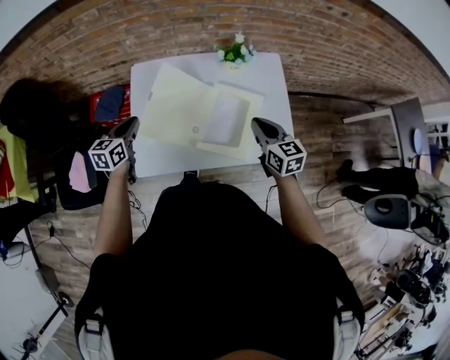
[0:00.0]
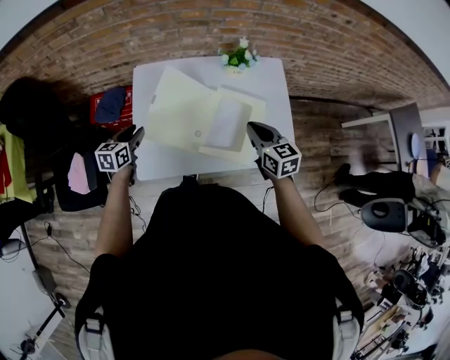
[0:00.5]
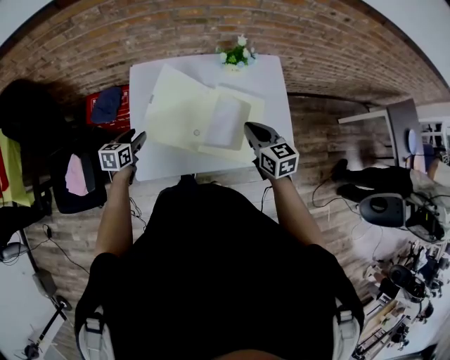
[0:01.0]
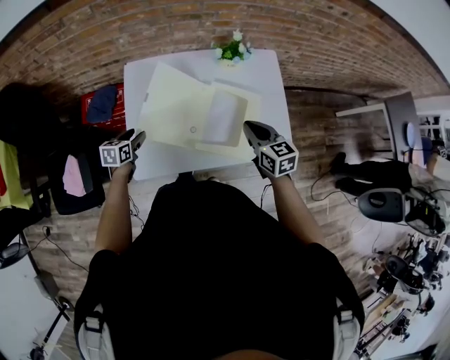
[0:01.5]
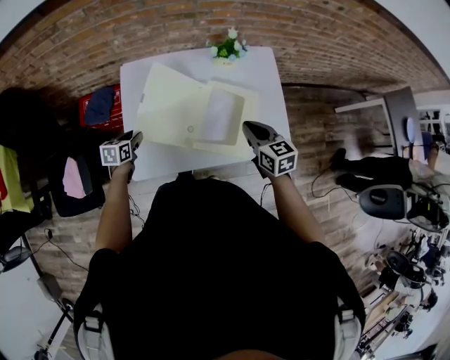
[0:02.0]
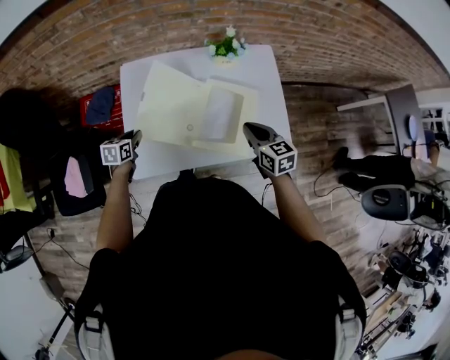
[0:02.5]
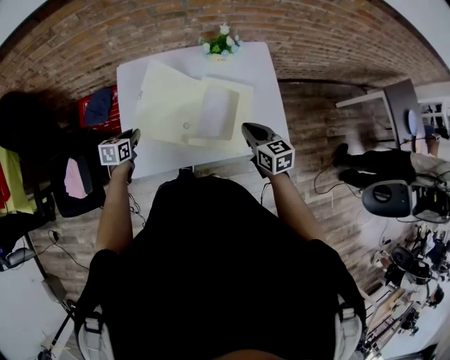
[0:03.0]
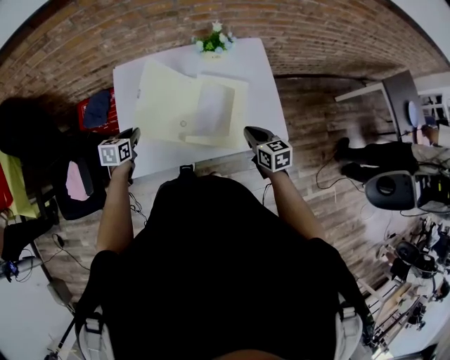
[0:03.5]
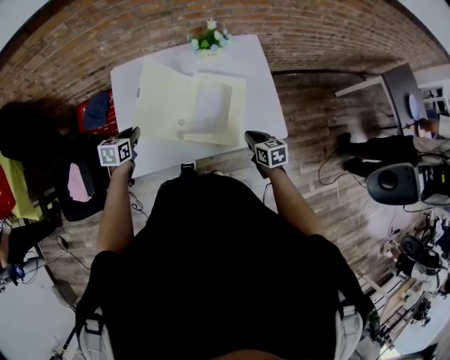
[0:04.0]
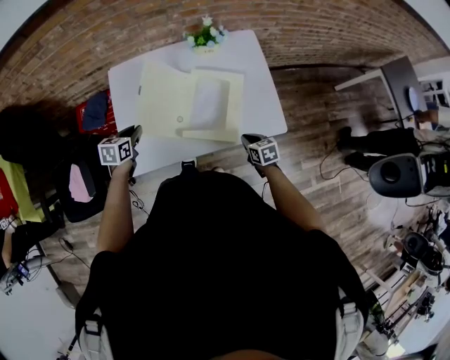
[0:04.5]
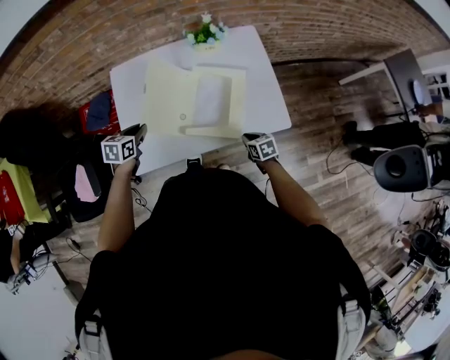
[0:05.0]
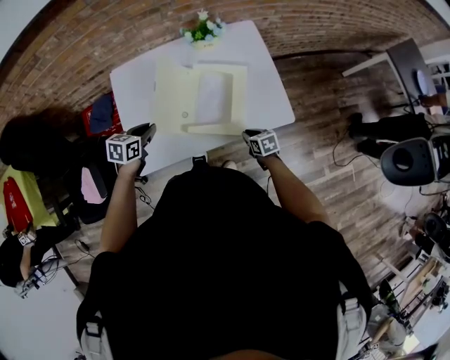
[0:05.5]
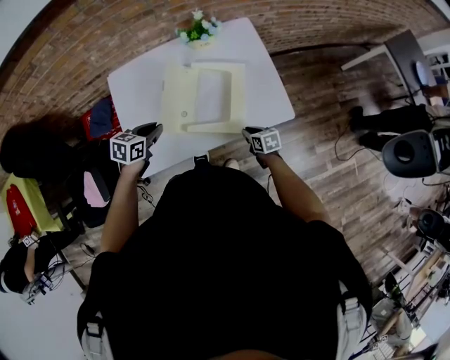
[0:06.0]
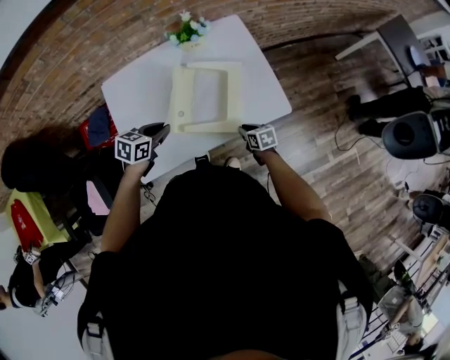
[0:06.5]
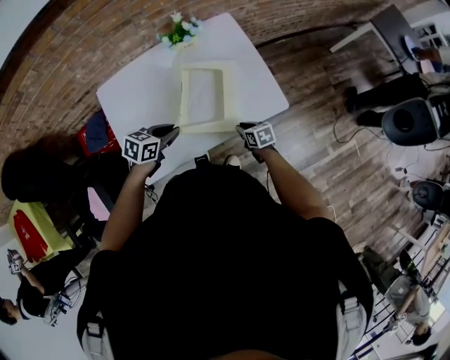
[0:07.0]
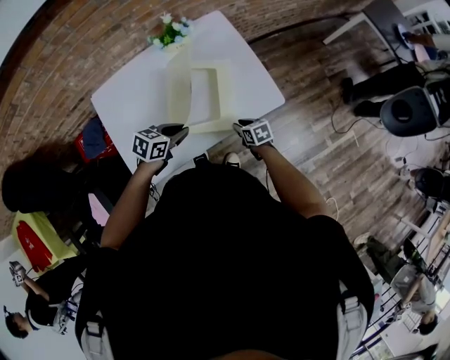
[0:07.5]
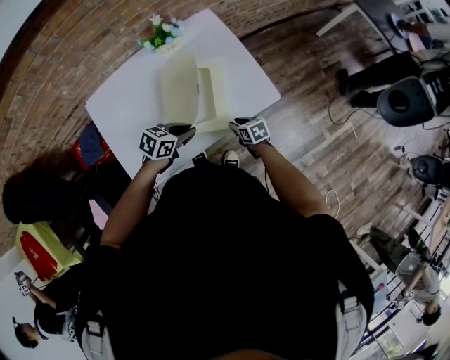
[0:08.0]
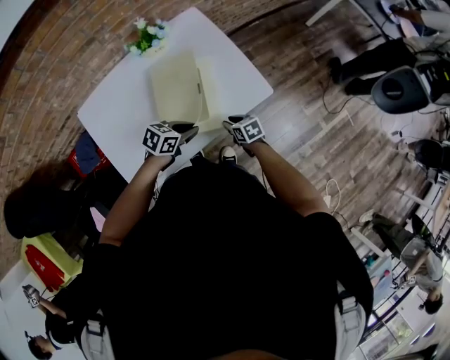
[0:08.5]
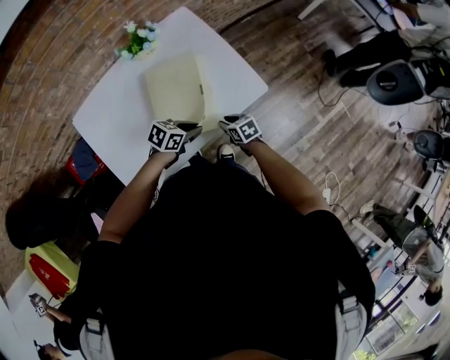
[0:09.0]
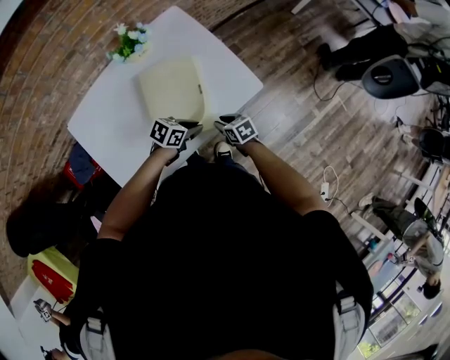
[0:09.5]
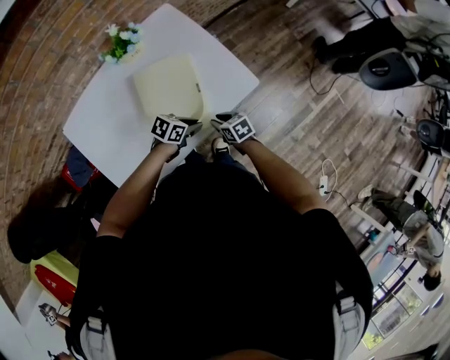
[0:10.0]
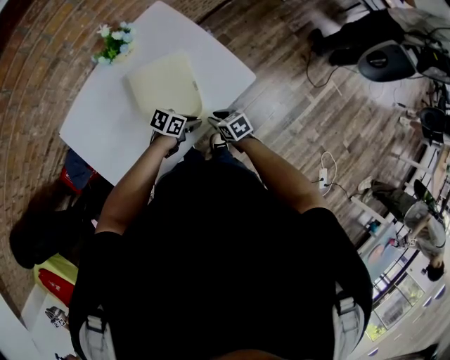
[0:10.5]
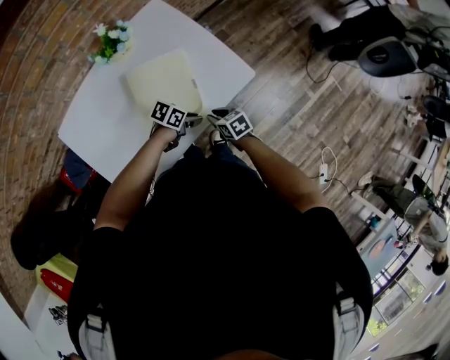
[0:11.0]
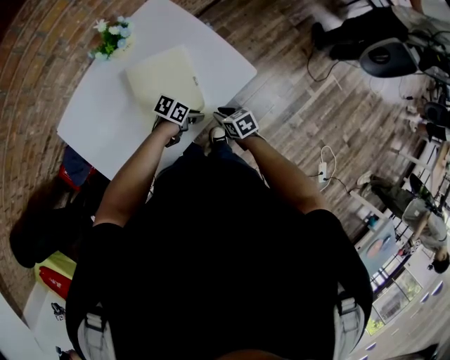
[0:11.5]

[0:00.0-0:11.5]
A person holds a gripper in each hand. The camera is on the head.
0:00.0 to 0:02.0: The left gripper heads downward, covering roughly 15 cm, turns by some 20 degrees, and opens up.
0:02.0 to 0:04.0: The left gripper is displaced to the right by approximately 5 cm, and closes up. Meanwhile the right gripper is displaced downward, to the right and backward by some 20 cm.
0:04.0 to 0:06.0: The right gripper moves downward, approximately 10 cm; the left gripper goes some 10 cm to the right, and turns by roughly 20 degrees.
0:06.0 to 0:07.5: The left gripper is displaced to the right by about 15 cm, and changes its angle by roughly 20 degrees.
0:07.5 to 0:09.5: The left gripper moves about 15 cm, and changes its angle by some 20 degrees.
0:09.5 to 0:11.5: The left gripper travels downward by approximately 5 cm.

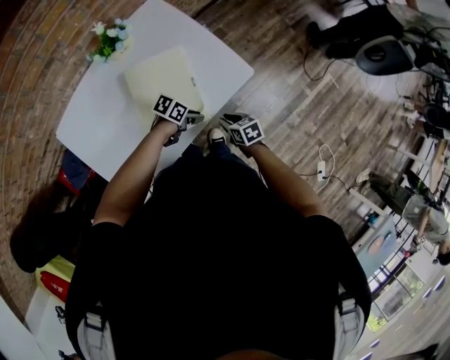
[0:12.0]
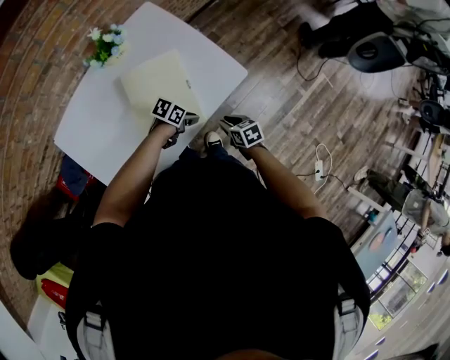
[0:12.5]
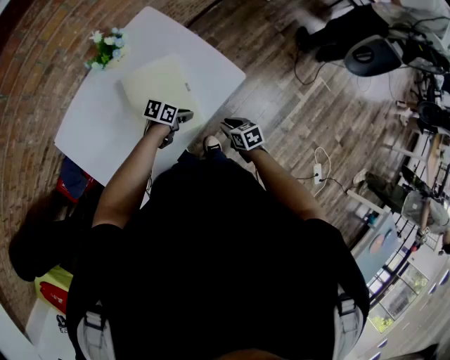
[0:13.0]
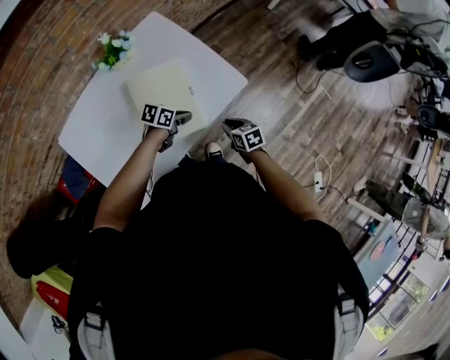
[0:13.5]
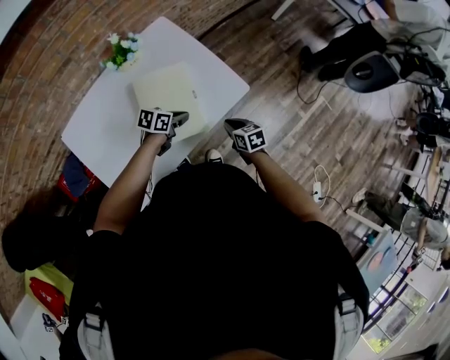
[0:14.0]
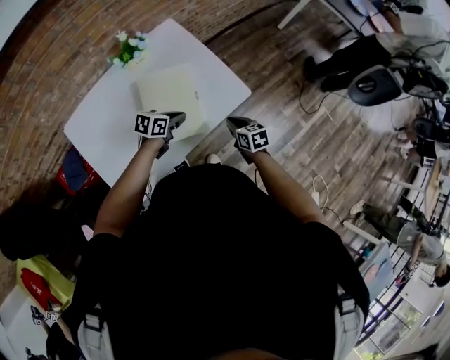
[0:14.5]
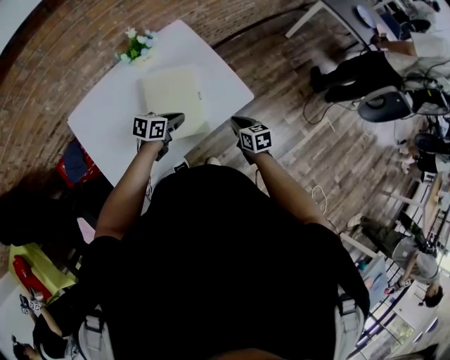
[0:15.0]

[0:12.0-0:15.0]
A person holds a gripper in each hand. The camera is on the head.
0:12.0 to 0:13.5: The left gripper moves about 5 cm.
0:13.5 to 0:15.0: Both grippers move upward, roughly 5 cm. The left gripper turns by some 20 degrees.

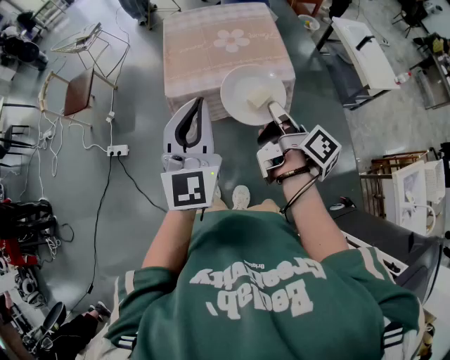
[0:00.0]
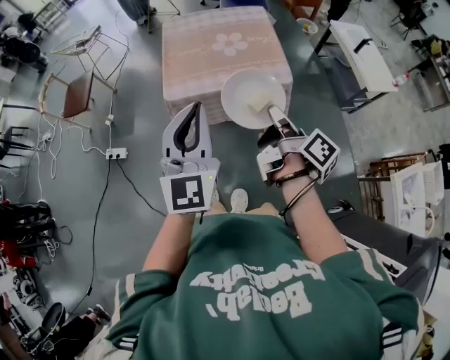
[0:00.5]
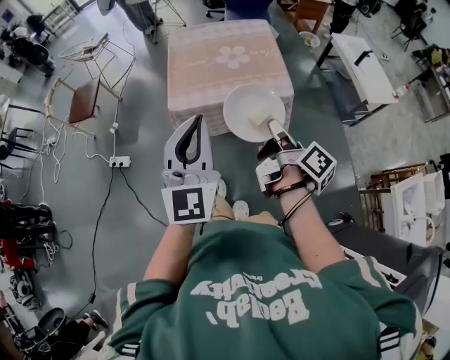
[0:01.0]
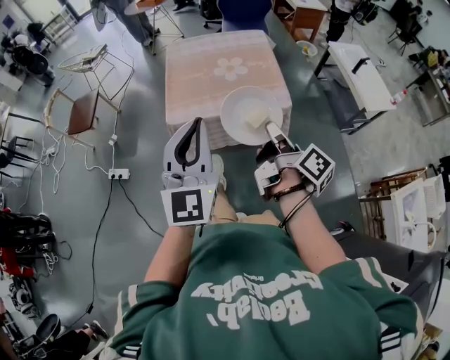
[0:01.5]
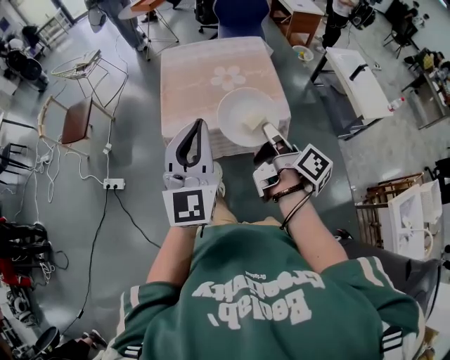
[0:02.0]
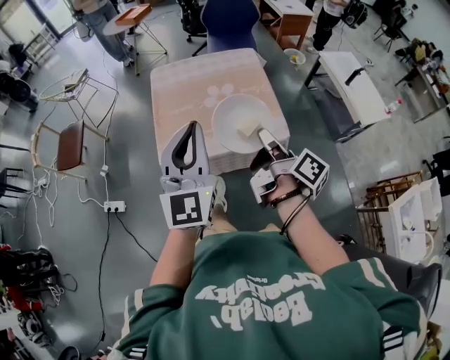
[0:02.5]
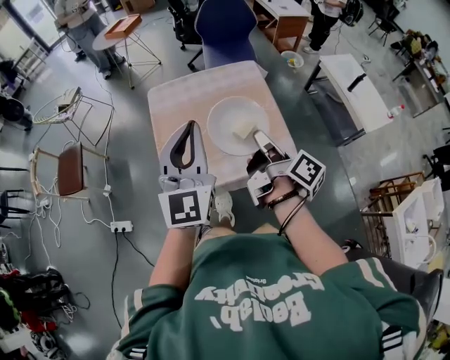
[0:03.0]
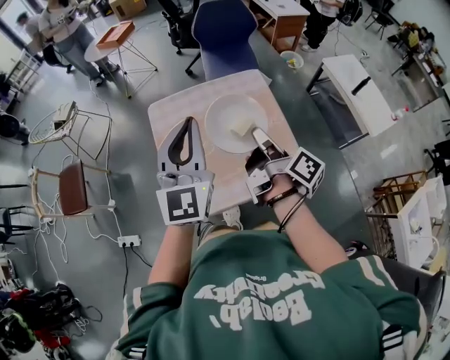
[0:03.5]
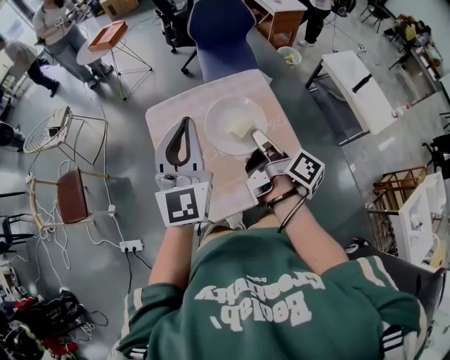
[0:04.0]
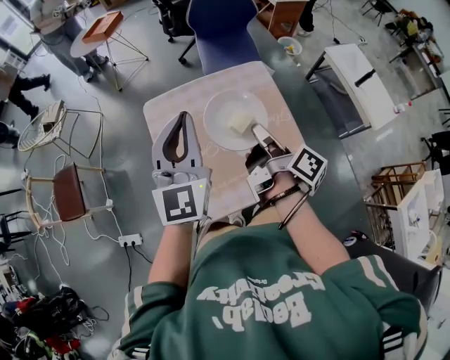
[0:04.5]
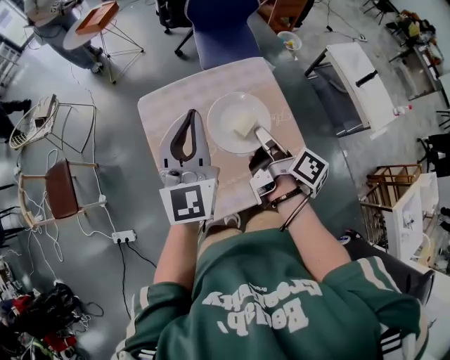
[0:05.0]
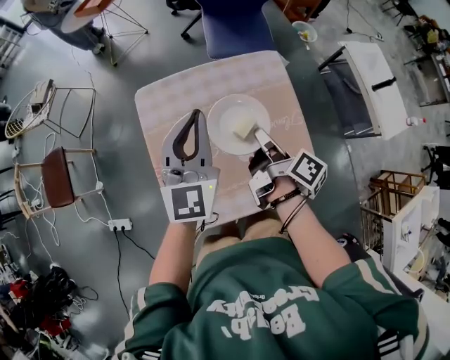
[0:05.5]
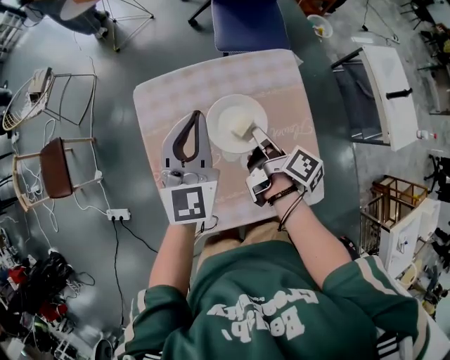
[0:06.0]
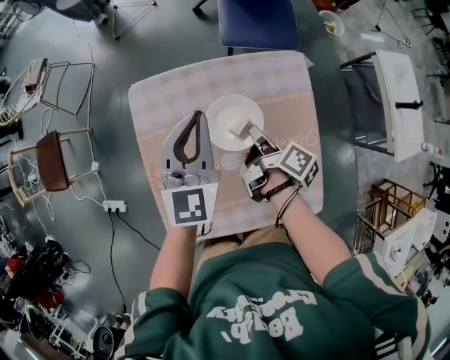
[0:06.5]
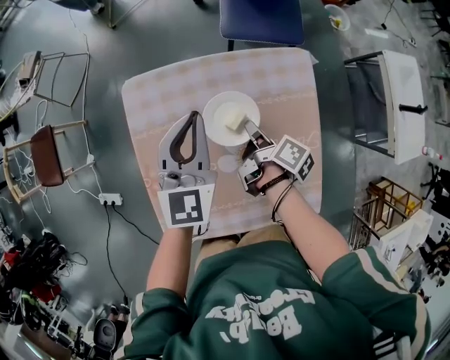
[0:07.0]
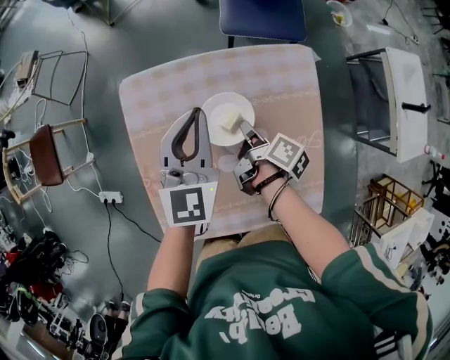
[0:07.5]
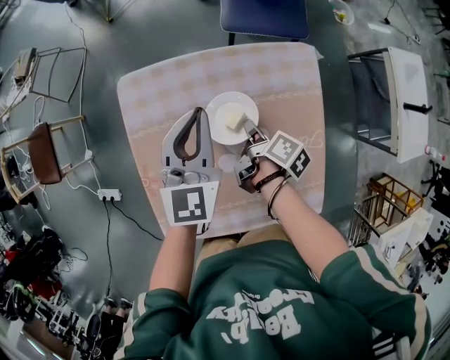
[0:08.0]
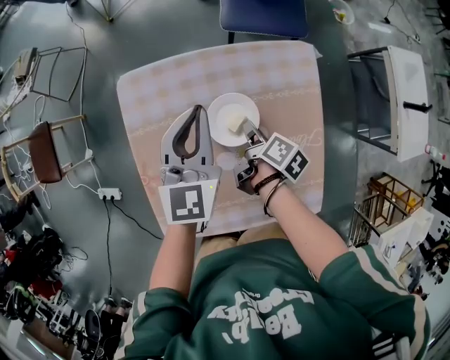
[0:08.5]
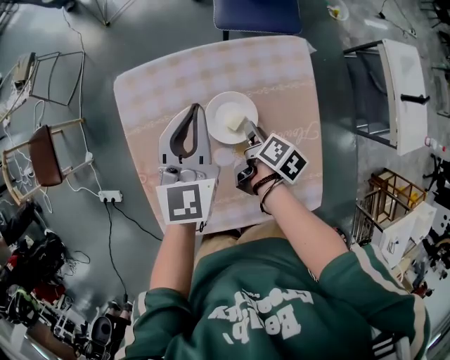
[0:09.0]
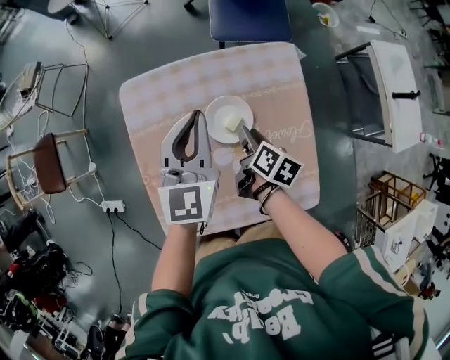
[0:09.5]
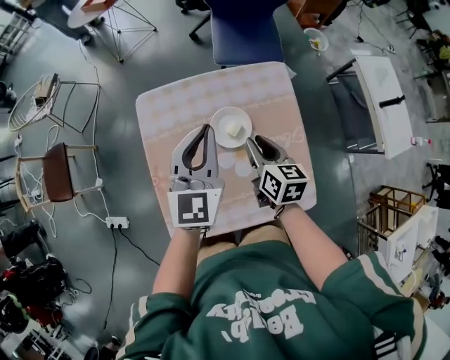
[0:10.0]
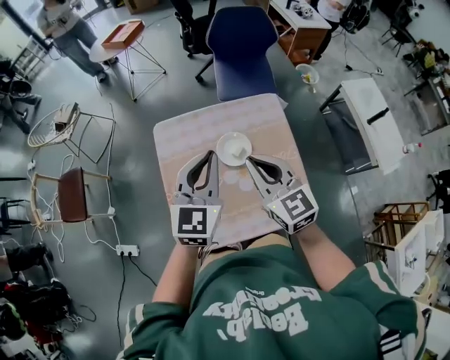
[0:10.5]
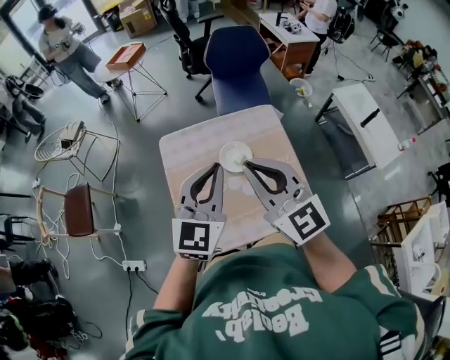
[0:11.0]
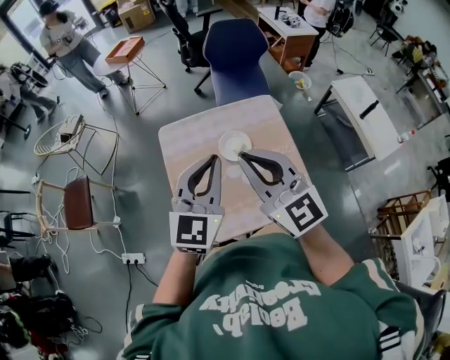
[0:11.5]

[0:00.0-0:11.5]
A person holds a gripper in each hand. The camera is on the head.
0:00.0 to 0:02.0: The left gripper changes place by about 5 cm.
0:02.0 to 0:04.0: The left gripper changes place by some 40 cm.
0:04.0 to 0:06.0: The left gripper travels downward by approximately 15 cm.
0:06.0 to 0:07.5: The left gripper moves downward, roughly 10 cm.
0:09.5 to 0:11.5: The left gripper shifts by approximately 25 cm.

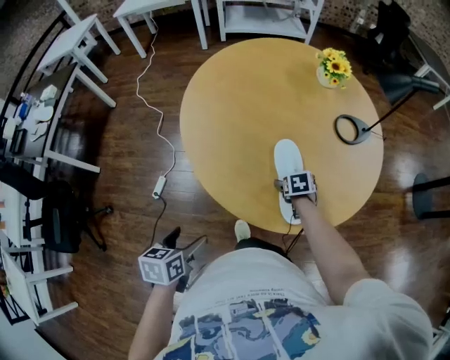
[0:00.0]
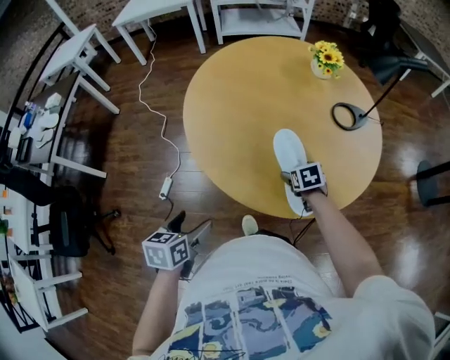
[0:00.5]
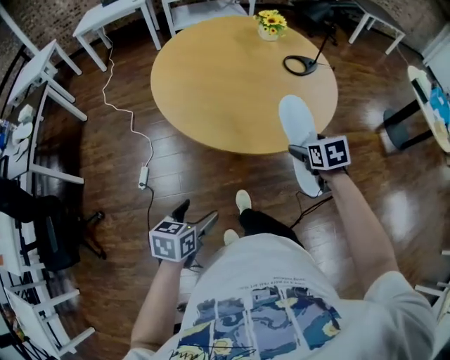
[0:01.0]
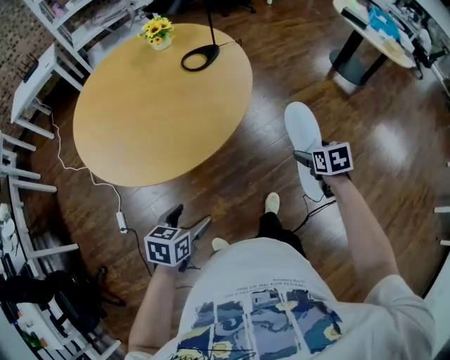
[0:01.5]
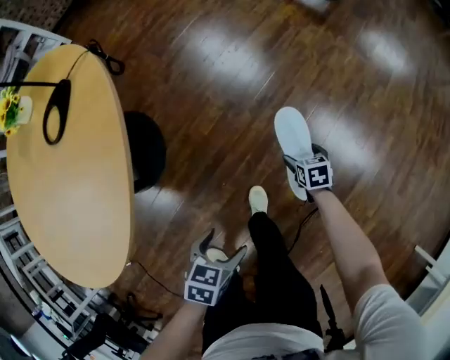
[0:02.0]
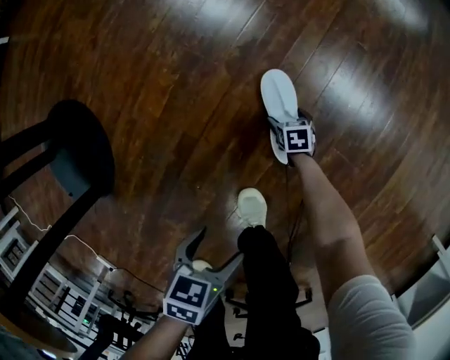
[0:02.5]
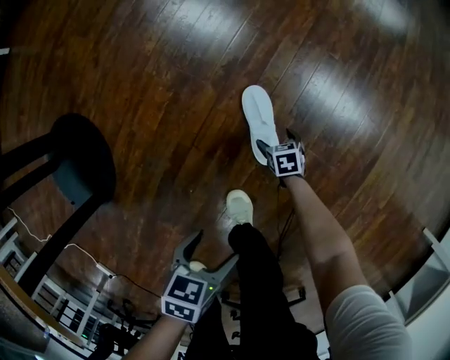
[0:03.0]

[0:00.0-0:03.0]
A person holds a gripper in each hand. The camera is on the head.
0:00.0 to 0:01.5: The left gripper changes place by some 35 cm, and changes its angle by roughly 50 degrees. Meanwhile the right gripper shifts by about 60 cm, and turns by some 30 degrees.
0:01.5 to 0:03.0: Both grippers are carried about 50 cm. The left gripper turns by about 40 degrees. Meanwhile the right gripper heads downward, covering about 80 cm, and changes its angle by approximately 30 degrees.
